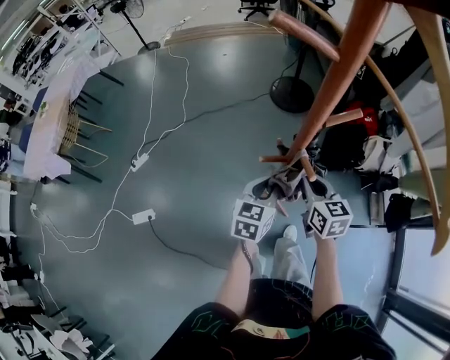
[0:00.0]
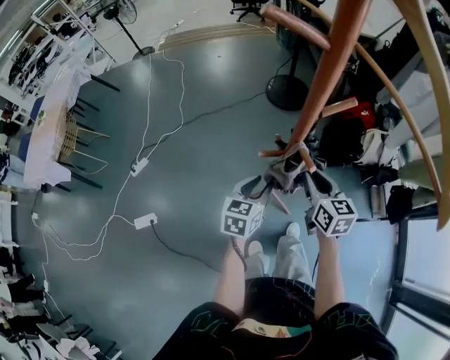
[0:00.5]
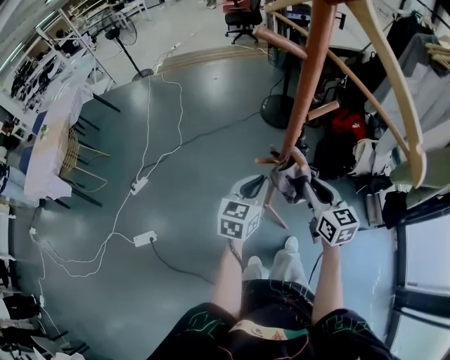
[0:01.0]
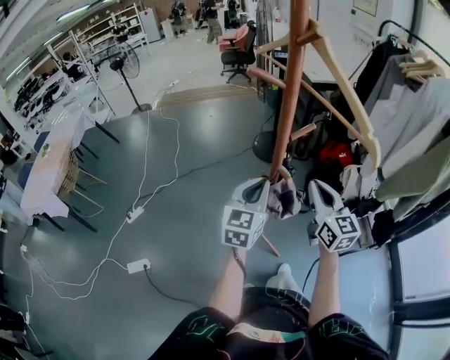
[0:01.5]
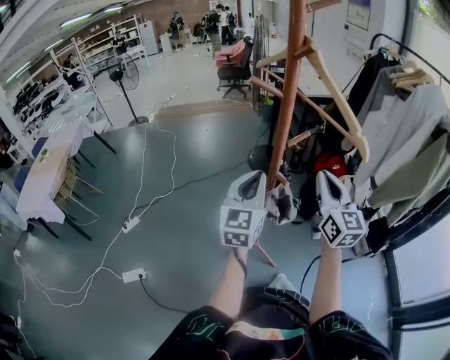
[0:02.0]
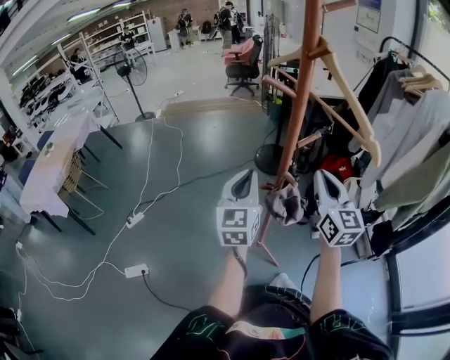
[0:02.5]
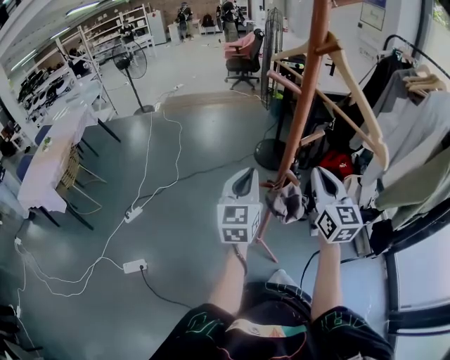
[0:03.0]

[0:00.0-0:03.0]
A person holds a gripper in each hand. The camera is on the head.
0:00.0 to 0:01.5: The grippers both shift upward by approximately 15 cm. The right gripper changes its angle by approximately 30 degrees. The left gripper turns by approximately 20 degrees, and opens, then closes once more.
0:01.5 to 0:03.0: The right gripper shifts some 5 cm upward, while the left gripper travels to the left by about 5 cm.

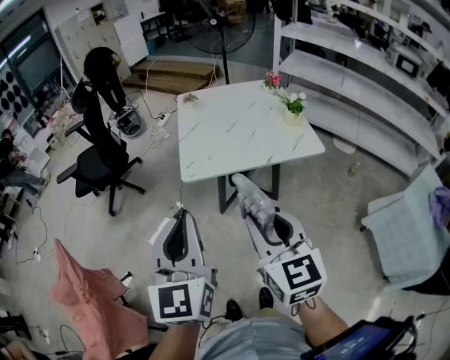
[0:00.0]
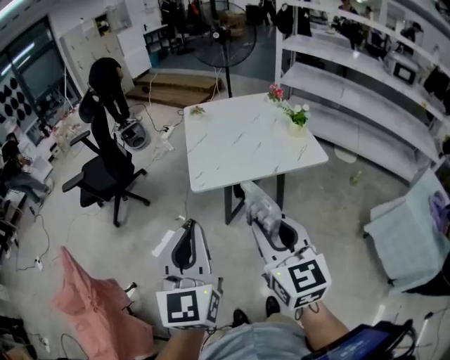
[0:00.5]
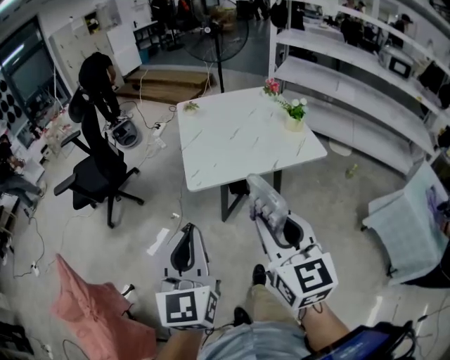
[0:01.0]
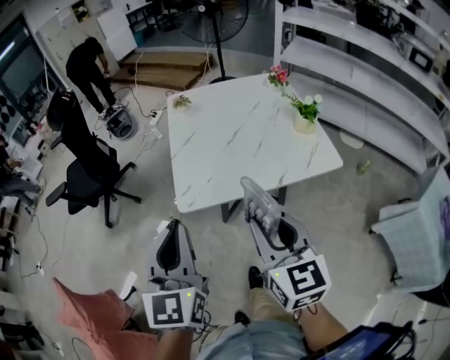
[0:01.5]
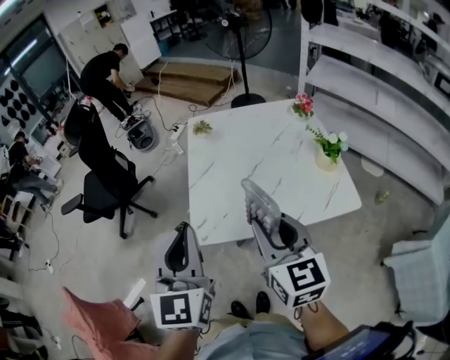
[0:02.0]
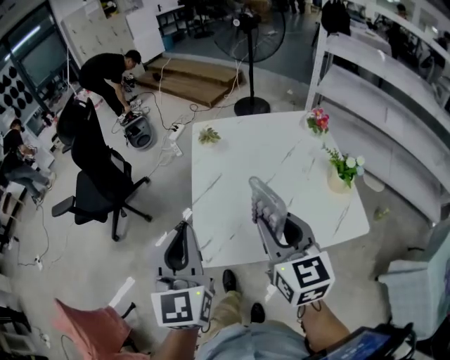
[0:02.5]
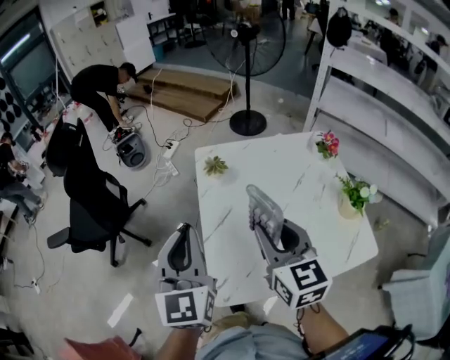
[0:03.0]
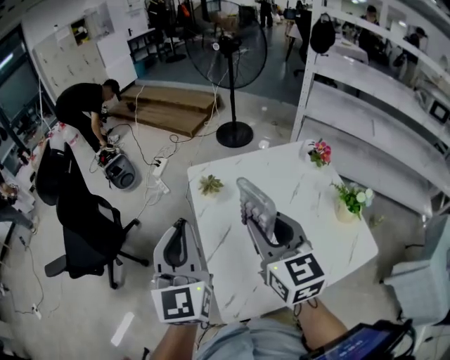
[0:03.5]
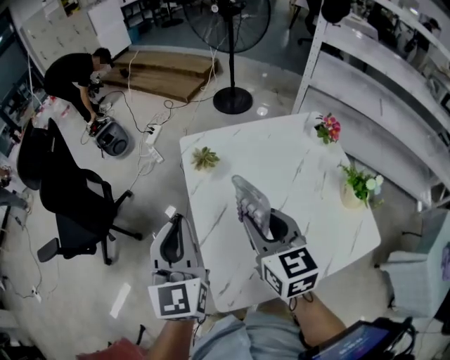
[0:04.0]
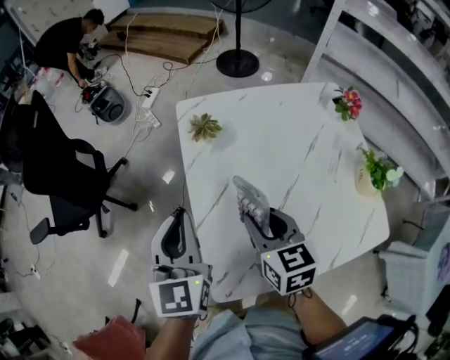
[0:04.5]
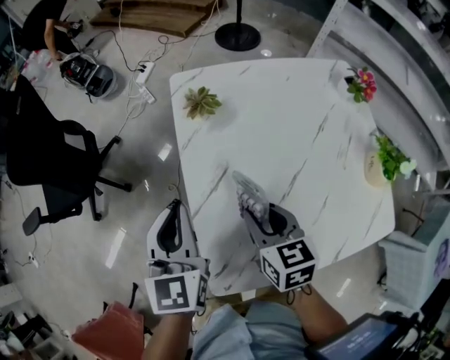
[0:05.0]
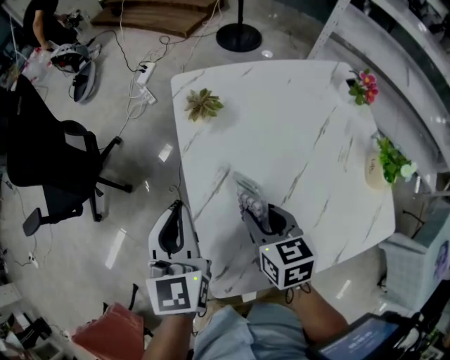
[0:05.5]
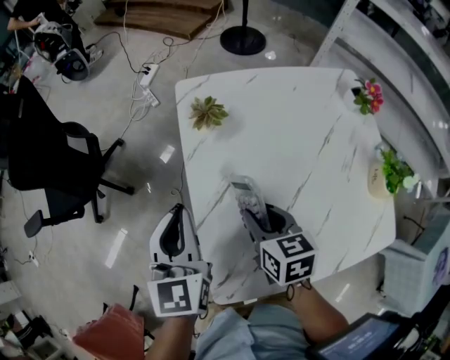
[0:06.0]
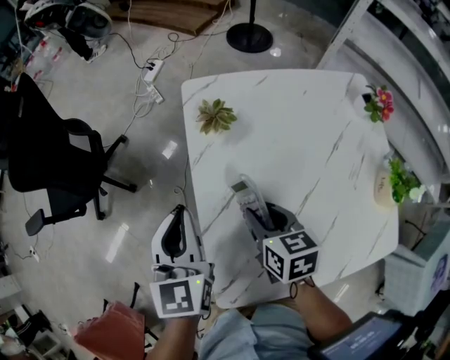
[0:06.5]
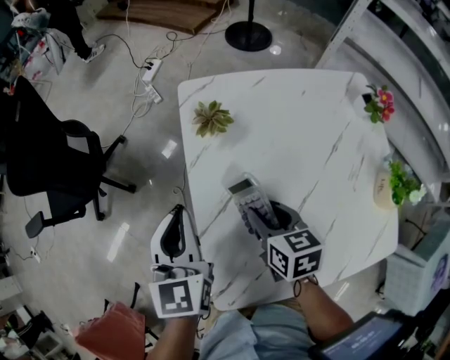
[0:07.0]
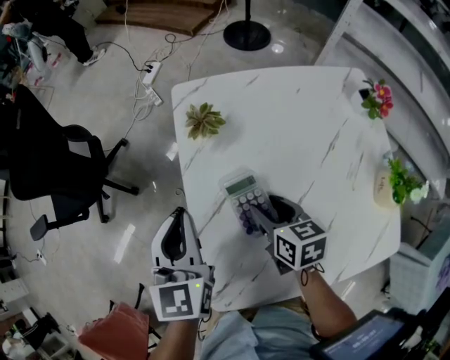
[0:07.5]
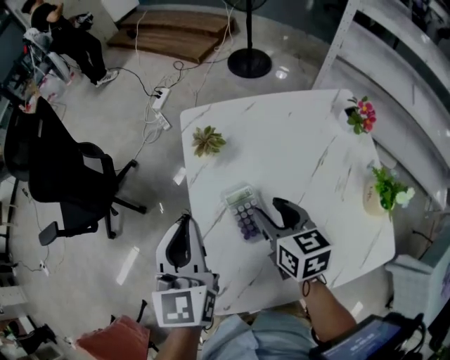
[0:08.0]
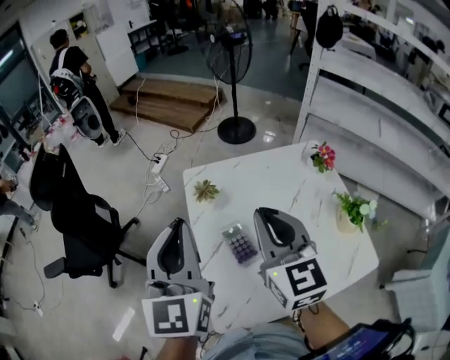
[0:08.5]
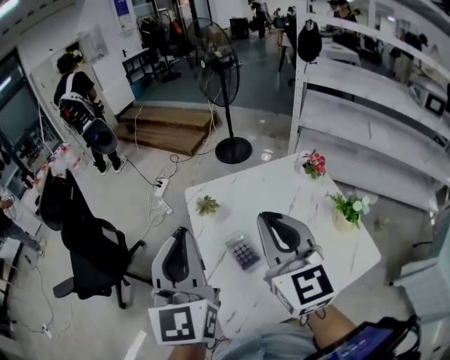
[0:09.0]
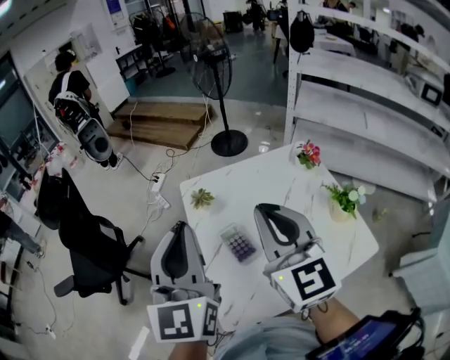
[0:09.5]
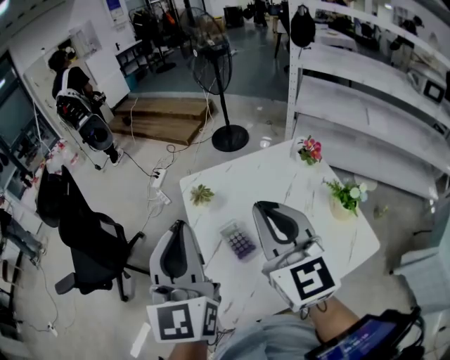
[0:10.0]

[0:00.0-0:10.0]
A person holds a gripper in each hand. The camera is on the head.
0:00.0 to 0:02.0: Both grippers move forward, approximately 25 cm.
0:02.0 to 0:04.0: The two grippers go some 30 cm forward.
0:04.0 to 0:06.0: The grippers both shift downward by about 15 cm. The right gripper turns by about 30 degrees.
0:06.0 to 0:08.0: The left gripper heads upward, covering about 5 cm, while the right gripper travels to the right and upward by some 10 cm.
0:08.0 to 0:10.0: Both grippers travel together upward, some 25 cm. The right gripper angles its fingers upward, by about 30 degrees, and closes. The left gripper swivels some 20 degrees.

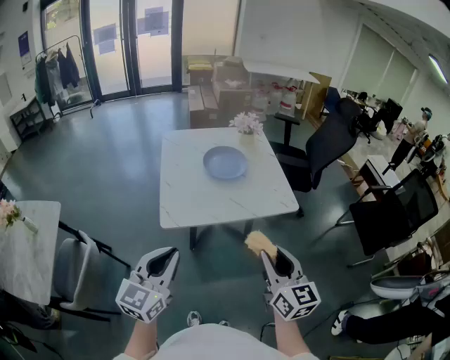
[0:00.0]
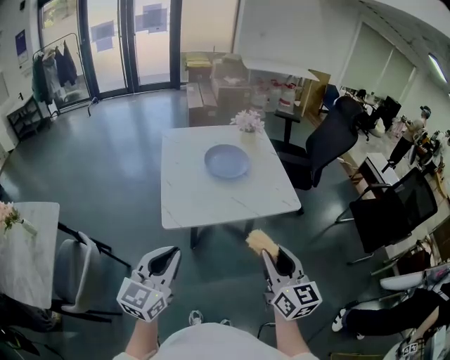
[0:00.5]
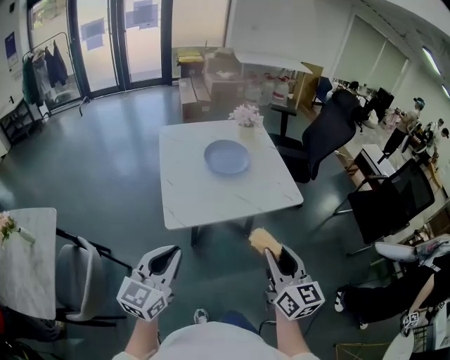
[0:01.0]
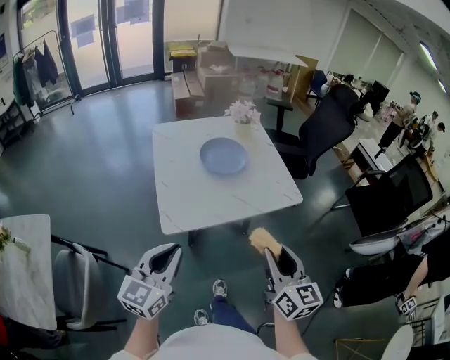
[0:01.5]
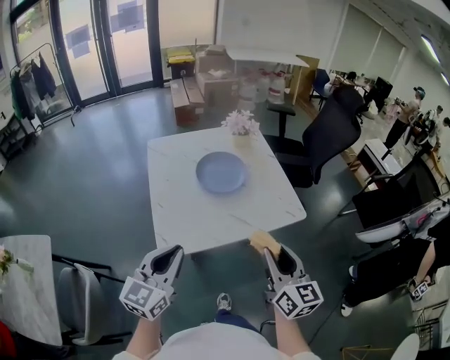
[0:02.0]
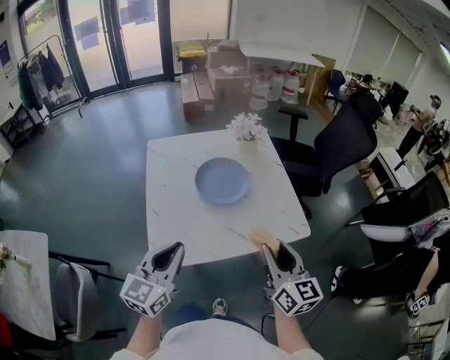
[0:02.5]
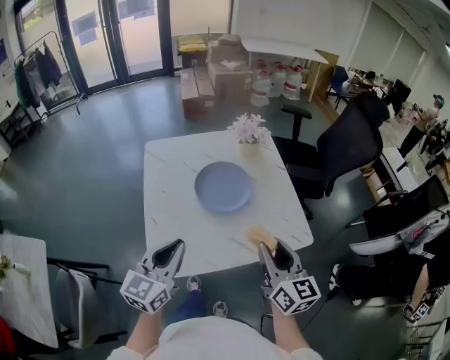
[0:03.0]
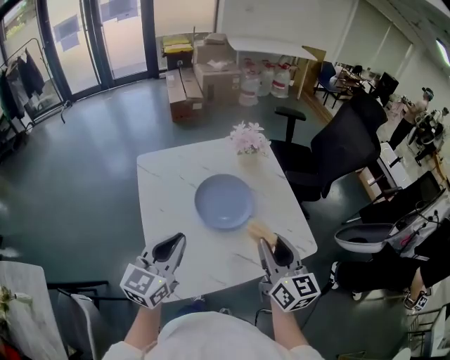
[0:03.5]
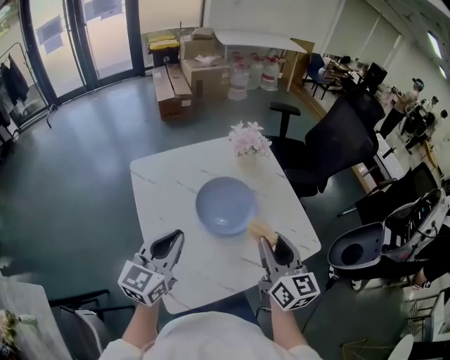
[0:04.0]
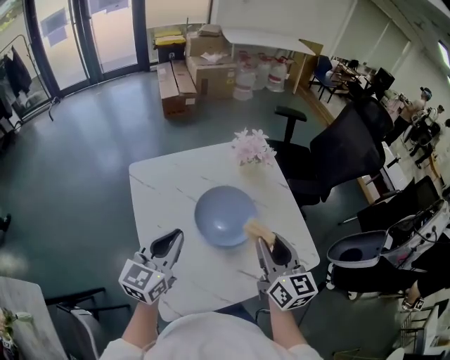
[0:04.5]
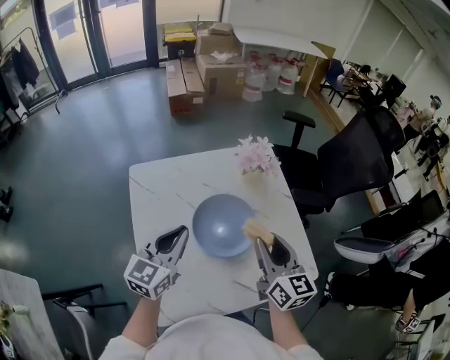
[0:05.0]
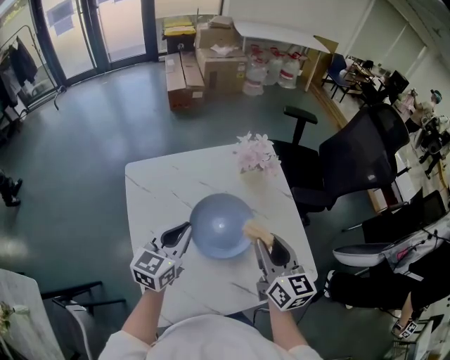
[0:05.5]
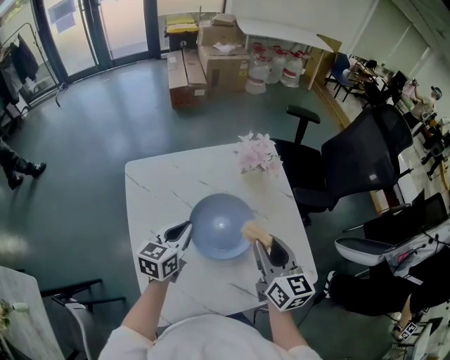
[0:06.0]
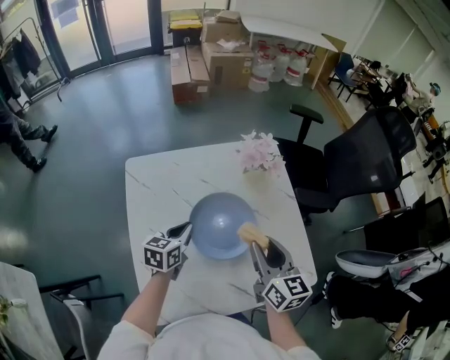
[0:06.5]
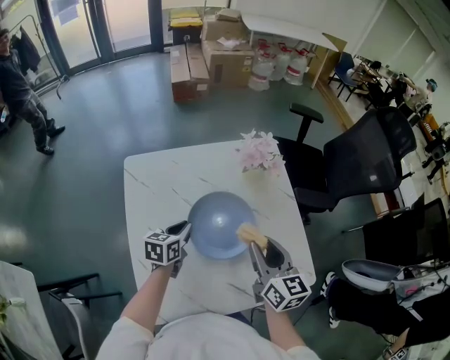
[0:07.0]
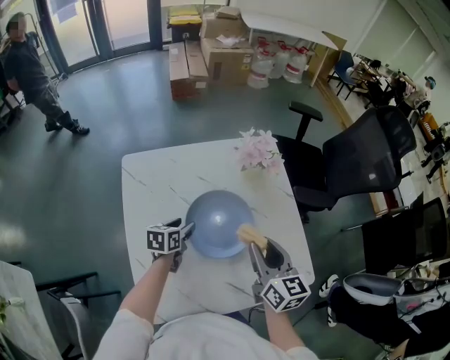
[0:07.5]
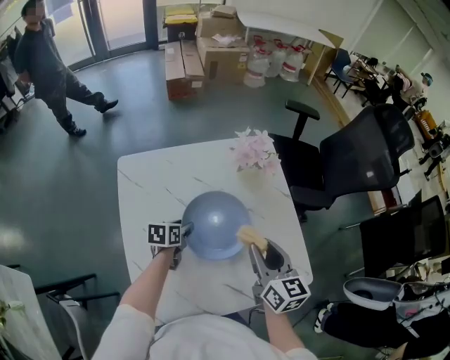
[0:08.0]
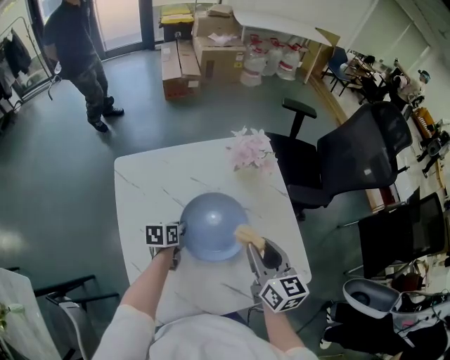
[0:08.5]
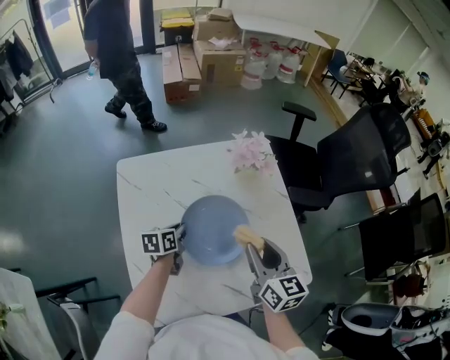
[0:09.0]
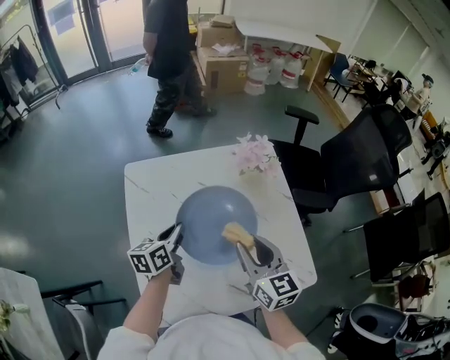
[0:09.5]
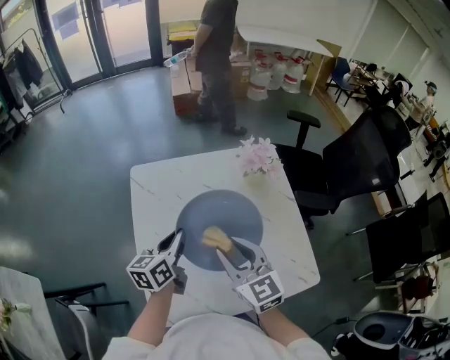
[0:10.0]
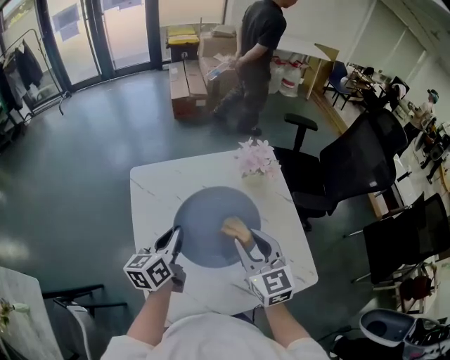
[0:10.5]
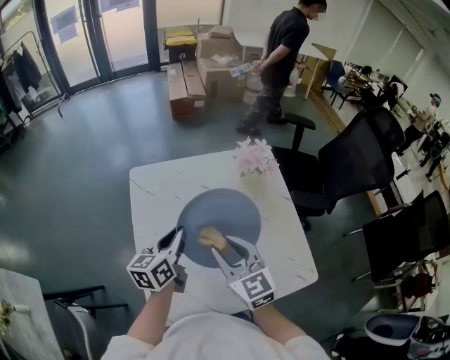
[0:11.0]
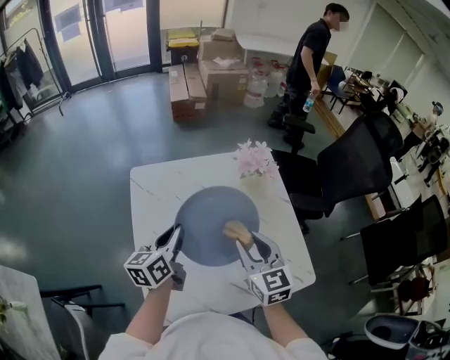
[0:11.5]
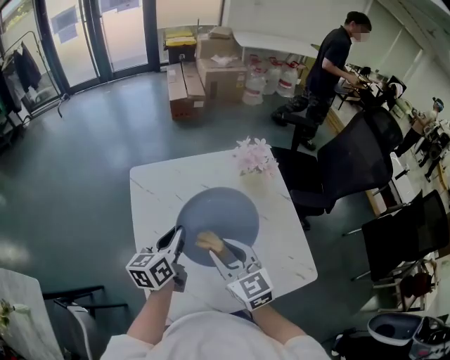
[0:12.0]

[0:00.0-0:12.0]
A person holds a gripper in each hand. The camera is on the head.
0:00.0 to 0:02.0: The grippers both shift forward by about 15 cm.
0:02.0 to 0:04.0: Both grippers travel together forward, approximately 30 cm.
0:04.0 to 0:06.0: The left gripper is displaced forward and downward by about 20 cm, and swivels some 20 degrees; the right gripper goes roughly 15 cm forward.
0:06.0 to 0:08.0: The left gripper goes about 15 cm downward, rotates about 30 degrees, and opens.
0:08.0 to 0:10.0: The left gripper goes about 20 cm upward, changes its angle by about 30 degrees, and closes up, while the right gripper goes roughly 15 cm to the left, and swivels some 30 degrees.
0:10.0 to 0:12.0: The right gripper goes left and right, roughly 10 cm each way, reversing 3 times.

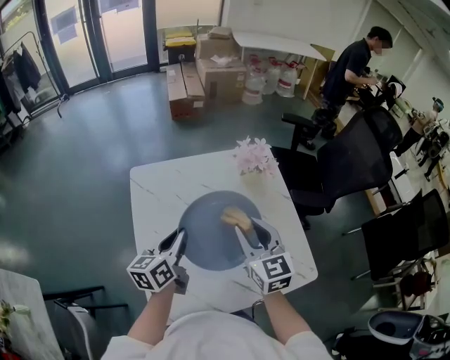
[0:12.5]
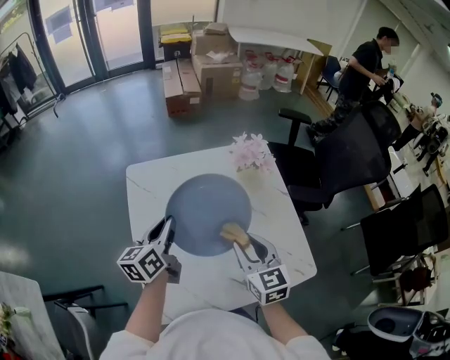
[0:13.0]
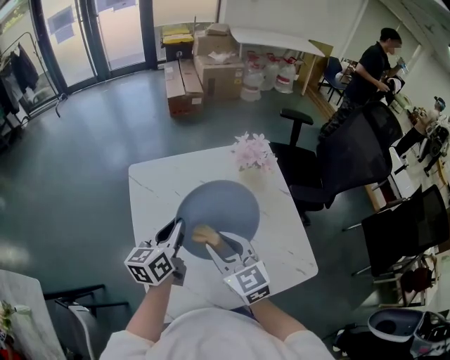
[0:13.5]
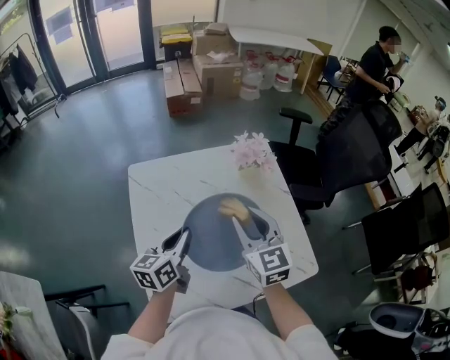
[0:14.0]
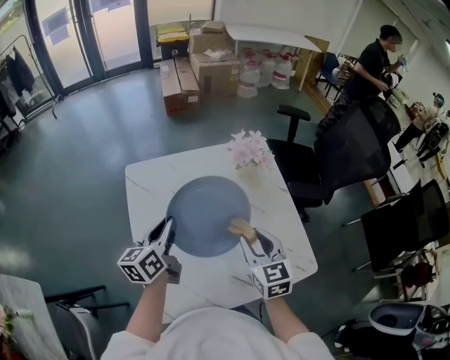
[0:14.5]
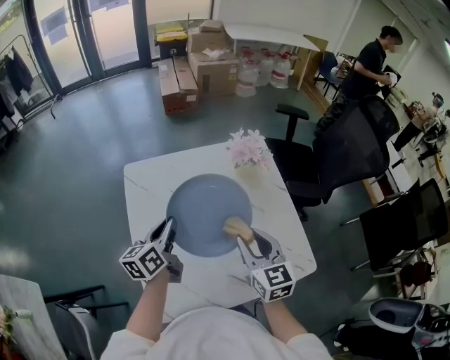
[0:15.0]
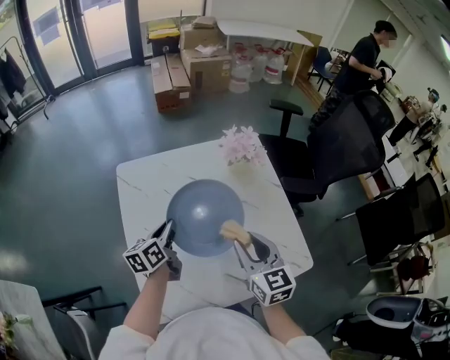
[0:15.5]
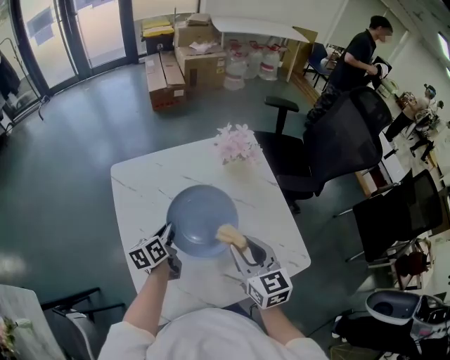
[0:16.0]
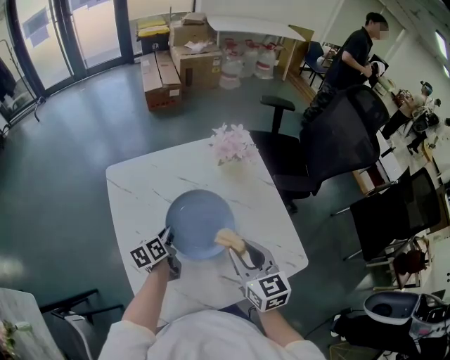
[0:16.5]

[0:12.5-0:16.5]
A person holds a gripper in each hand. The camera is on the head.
0:12.5 to 0:14.5: The right gripper travels to the left and back again, approximately 10 cm each way.
0:14.5 to 0:16.5: The left gripper shifts about 15 cm downward, and swivels roughly 30 degrees.
